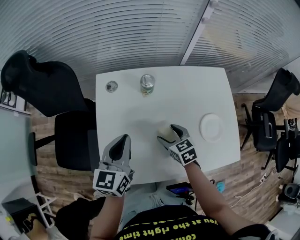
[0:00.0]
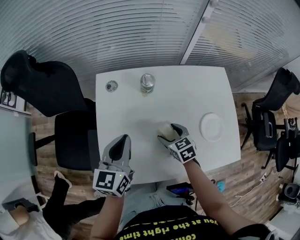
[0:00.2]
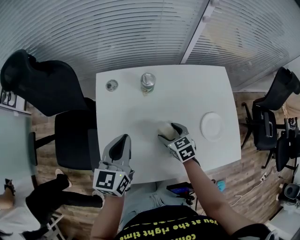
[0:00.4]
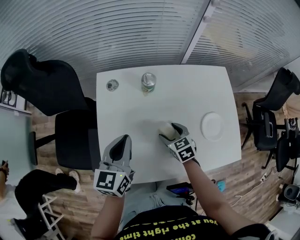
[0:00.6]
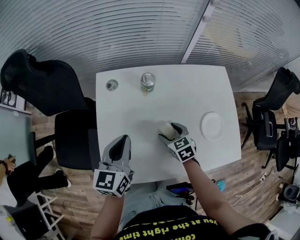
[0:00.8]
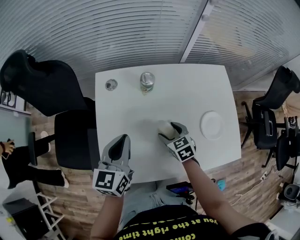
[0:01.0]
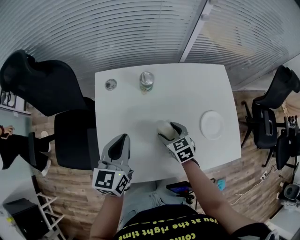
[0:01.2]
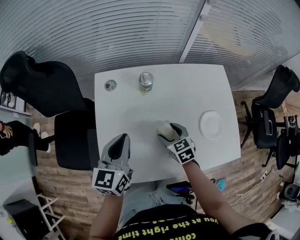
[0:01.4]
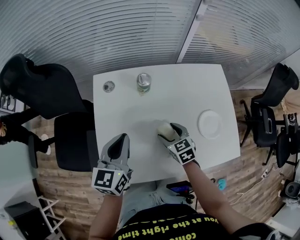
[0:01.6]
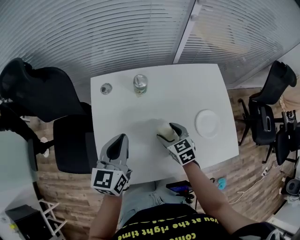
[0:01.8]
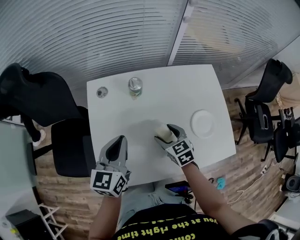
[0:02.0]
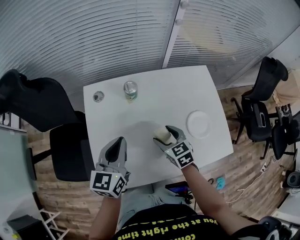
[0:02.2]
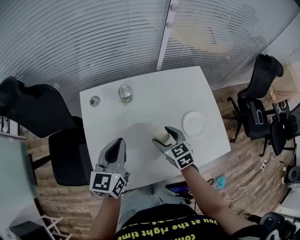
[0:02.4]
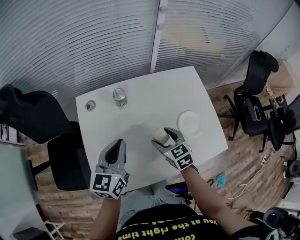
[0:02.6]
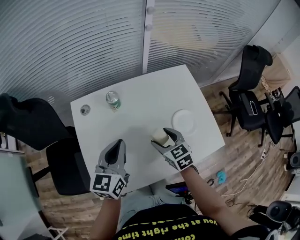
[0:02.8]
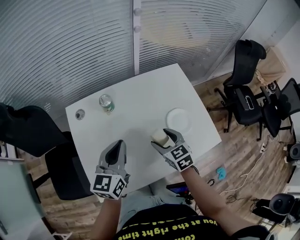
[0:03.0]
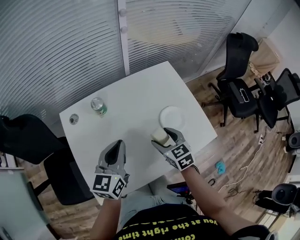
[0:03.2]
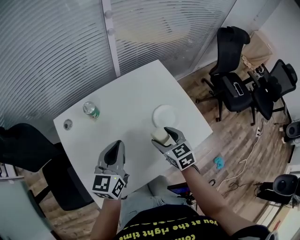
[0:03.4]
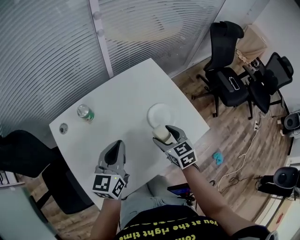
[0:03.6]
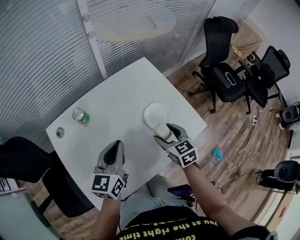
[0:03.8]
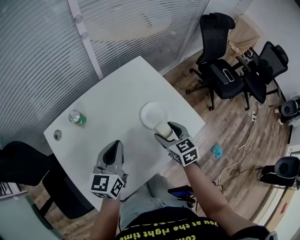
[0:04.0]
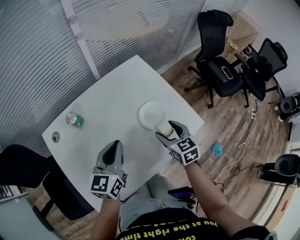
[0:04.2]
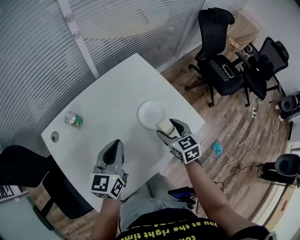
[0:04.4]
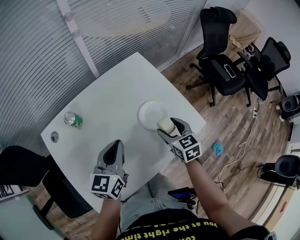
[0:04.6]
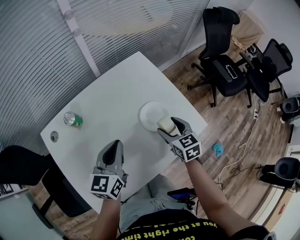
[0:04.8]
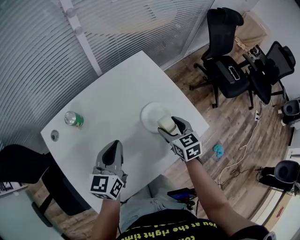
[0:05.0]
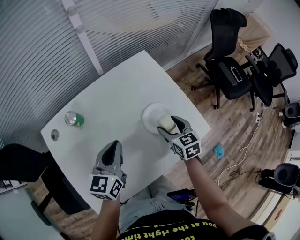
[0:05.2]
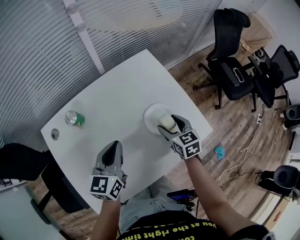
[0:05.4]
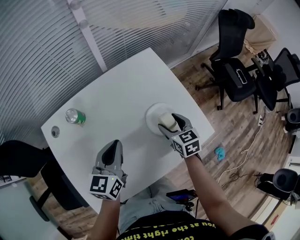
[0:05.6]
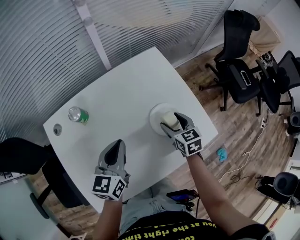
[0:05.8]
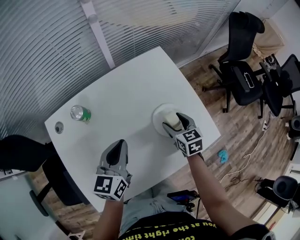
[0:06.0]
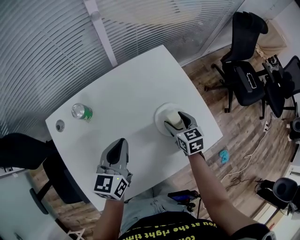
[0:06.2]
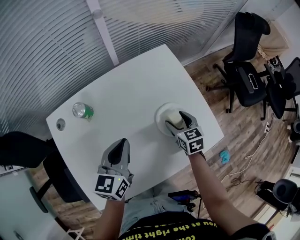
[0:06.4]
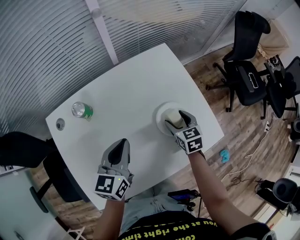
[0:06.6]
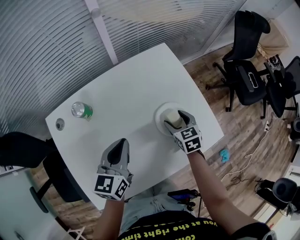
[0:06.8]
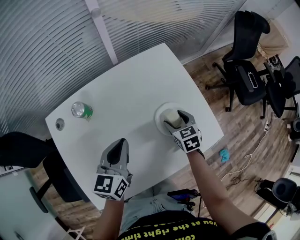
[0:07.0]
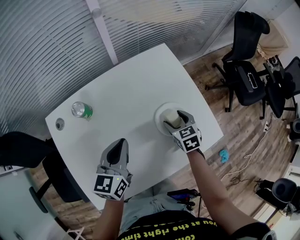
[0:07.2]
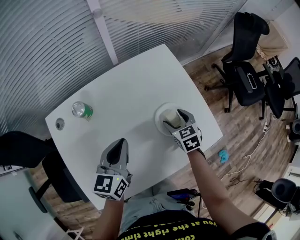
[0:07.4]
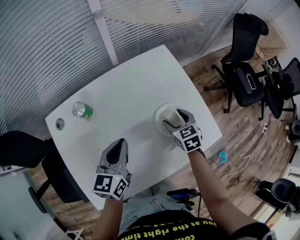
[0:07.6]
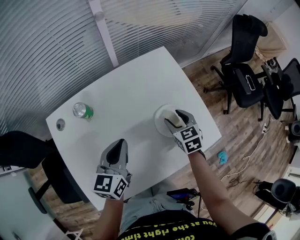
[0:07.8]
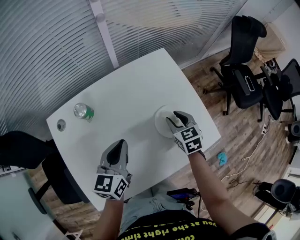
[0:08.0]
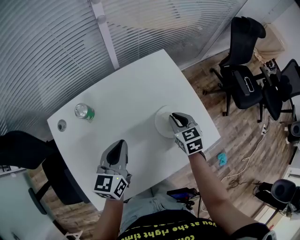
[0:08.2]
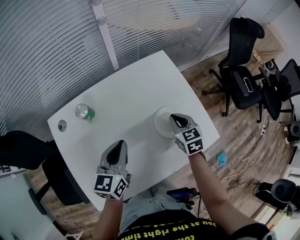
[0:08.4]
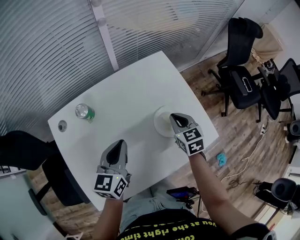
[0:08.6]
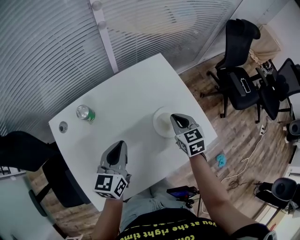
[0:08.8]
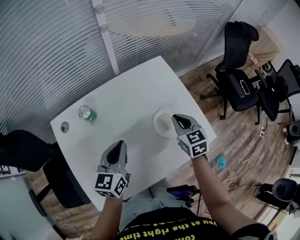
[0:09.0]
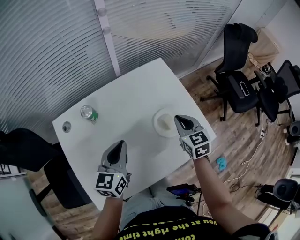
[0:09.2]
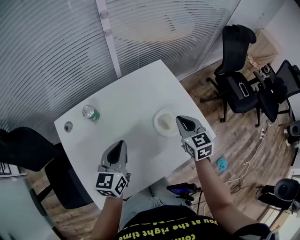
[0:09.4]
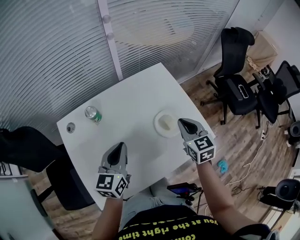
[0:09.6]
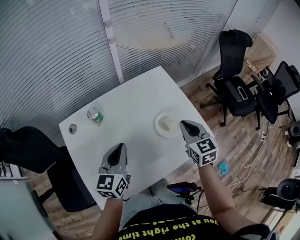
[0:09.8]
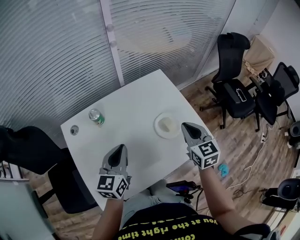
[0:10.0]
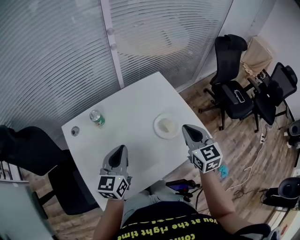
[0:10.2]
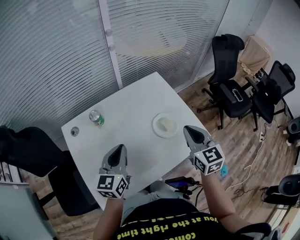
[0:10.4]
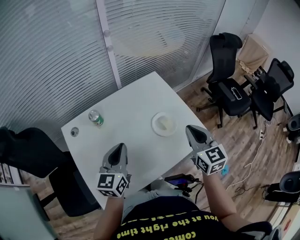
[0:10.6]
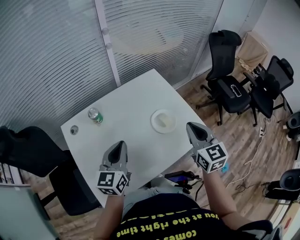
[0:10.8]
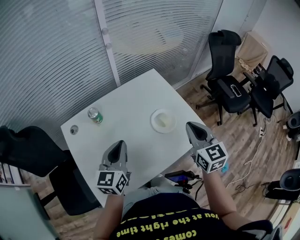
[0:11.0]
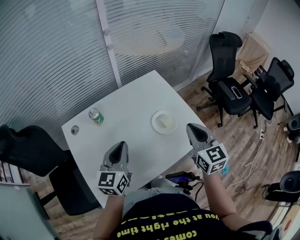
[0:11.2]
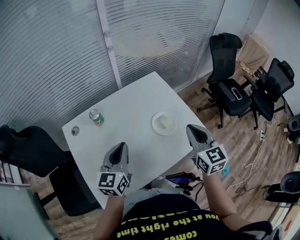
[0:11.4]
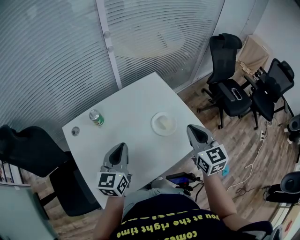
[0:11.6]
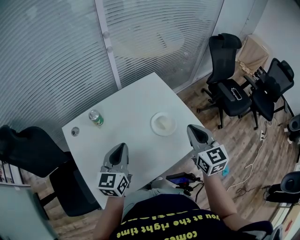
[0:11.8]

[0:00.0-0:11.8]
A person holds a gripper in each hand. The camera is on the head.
0:00.0 to 0:01.4: The grippers move only a little.
0:01.4 to 0:03.0: The left gripper heads to the right, covering approximately 10 cm, while the right gripper heads to the right and upward, covering about 15 cm.
0:03.0 to 0:04.4: Both grippers move to the right, approximately 15 cm. The right gripper rotates about 20 degrees.
0:04.4 to 0:06.0: The right gripper goes about 10 cm forward and downward, while the left gripper changes place by approximately 5 cm.
0:06.0 to 0:07.4: The grippers stay close to where they were, moving slightly.
0:07.4 to 0:08.8: The right gripper is displaced upward by about 10 cm, and closes.
0:08.8 to 0:10.4: The right gripper shifts about 20 cm upward and backward; the left gripper shifts about 10 cm upward and backward.
0:10.4 to 0:11.8: The grippers make only small movements.

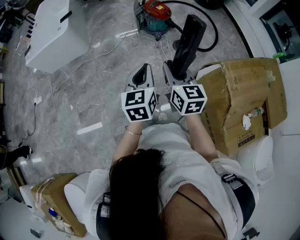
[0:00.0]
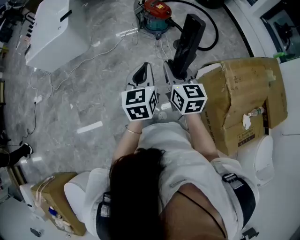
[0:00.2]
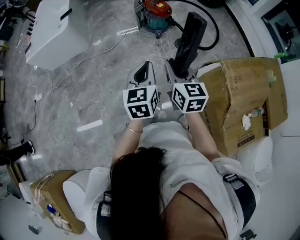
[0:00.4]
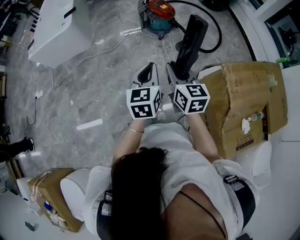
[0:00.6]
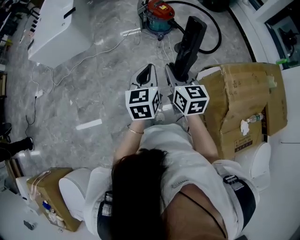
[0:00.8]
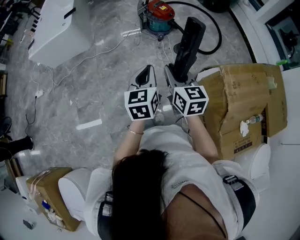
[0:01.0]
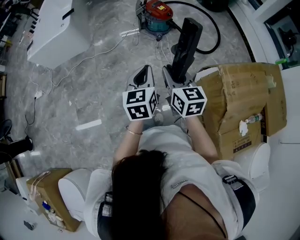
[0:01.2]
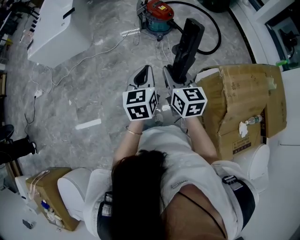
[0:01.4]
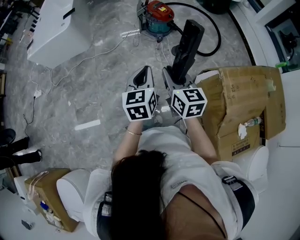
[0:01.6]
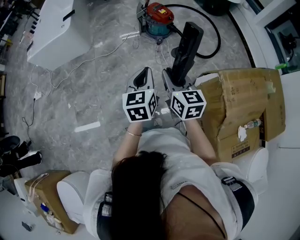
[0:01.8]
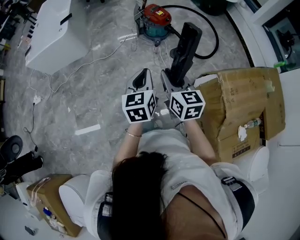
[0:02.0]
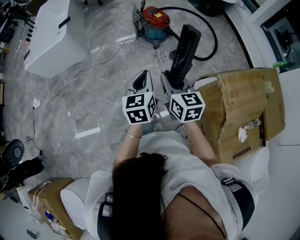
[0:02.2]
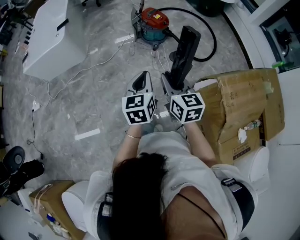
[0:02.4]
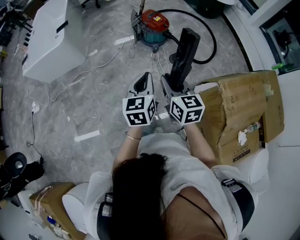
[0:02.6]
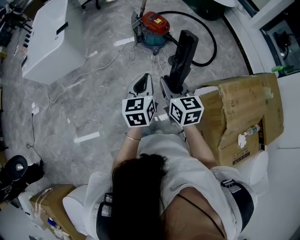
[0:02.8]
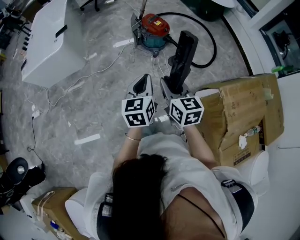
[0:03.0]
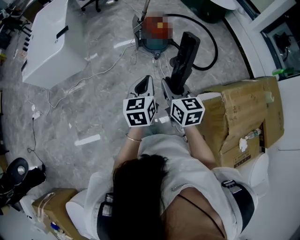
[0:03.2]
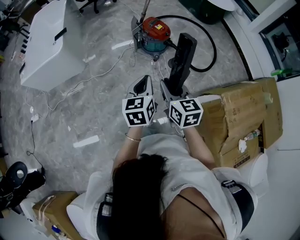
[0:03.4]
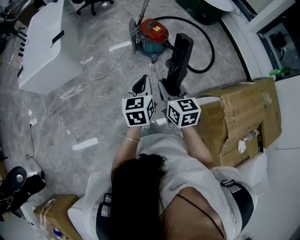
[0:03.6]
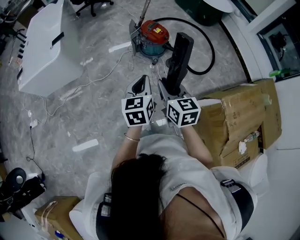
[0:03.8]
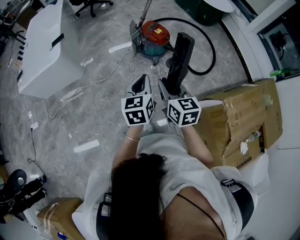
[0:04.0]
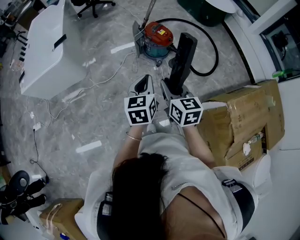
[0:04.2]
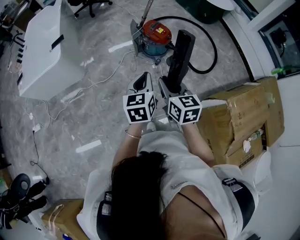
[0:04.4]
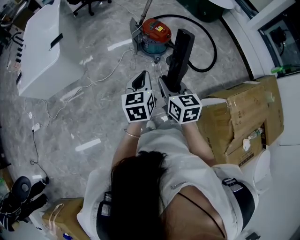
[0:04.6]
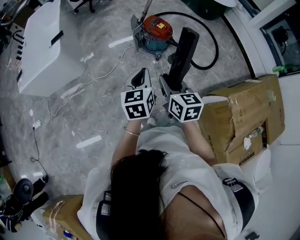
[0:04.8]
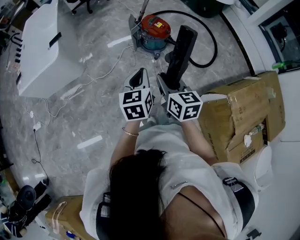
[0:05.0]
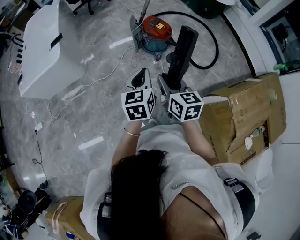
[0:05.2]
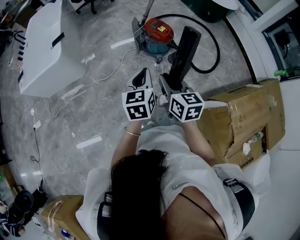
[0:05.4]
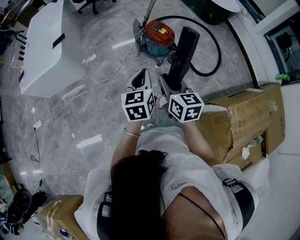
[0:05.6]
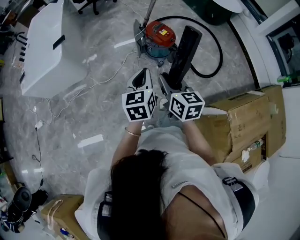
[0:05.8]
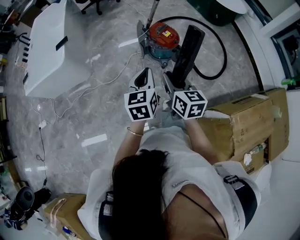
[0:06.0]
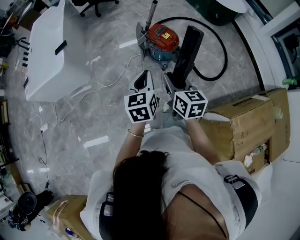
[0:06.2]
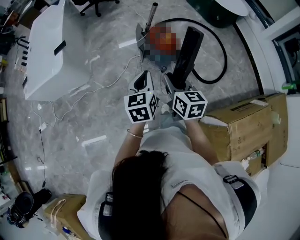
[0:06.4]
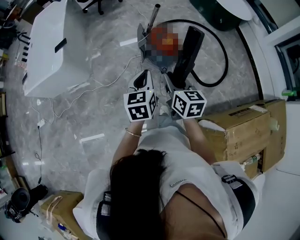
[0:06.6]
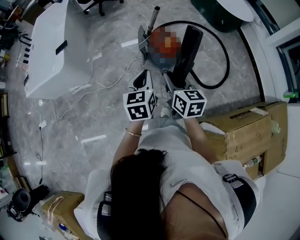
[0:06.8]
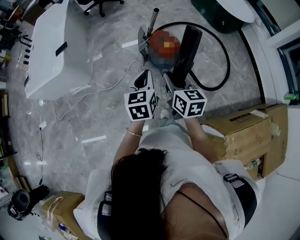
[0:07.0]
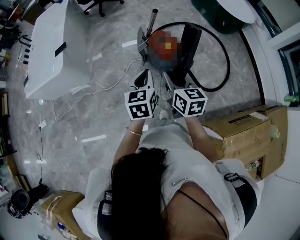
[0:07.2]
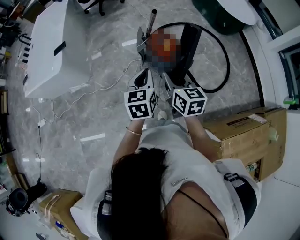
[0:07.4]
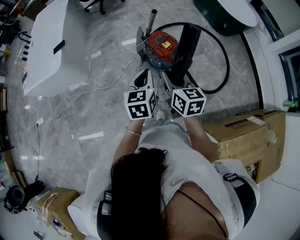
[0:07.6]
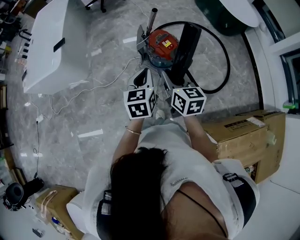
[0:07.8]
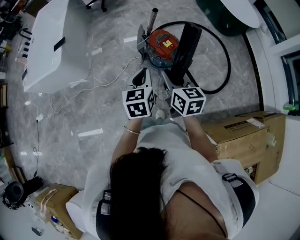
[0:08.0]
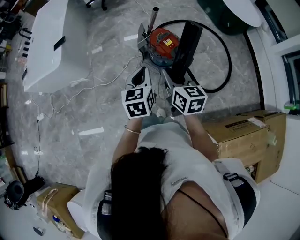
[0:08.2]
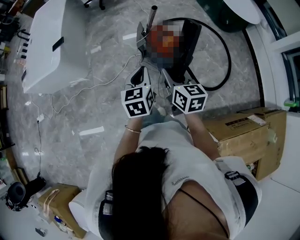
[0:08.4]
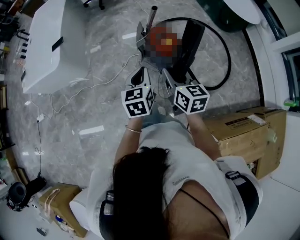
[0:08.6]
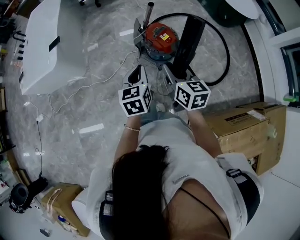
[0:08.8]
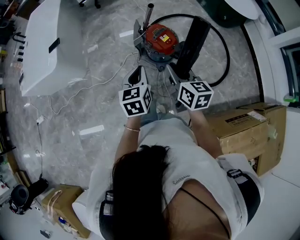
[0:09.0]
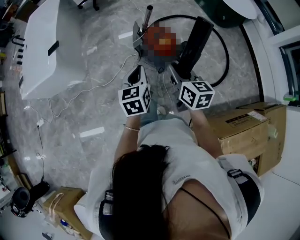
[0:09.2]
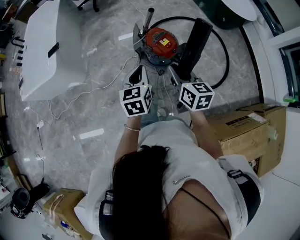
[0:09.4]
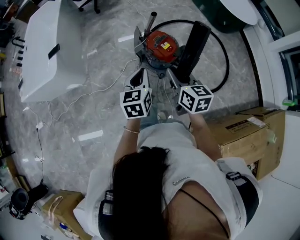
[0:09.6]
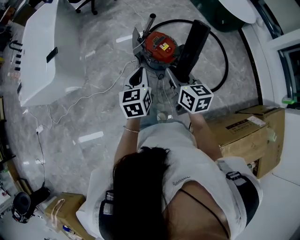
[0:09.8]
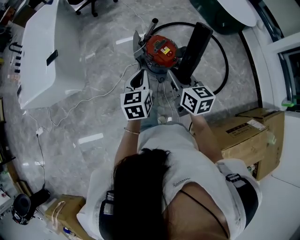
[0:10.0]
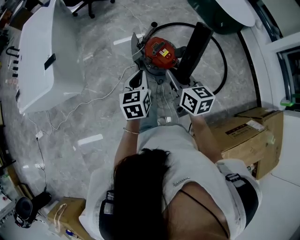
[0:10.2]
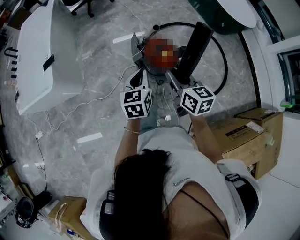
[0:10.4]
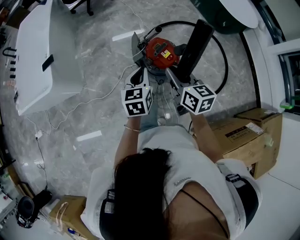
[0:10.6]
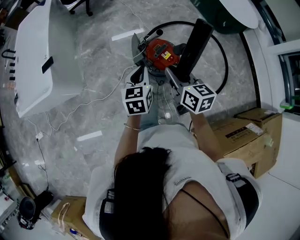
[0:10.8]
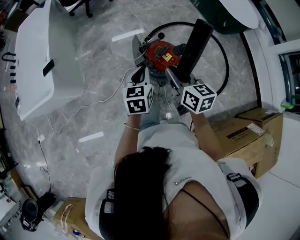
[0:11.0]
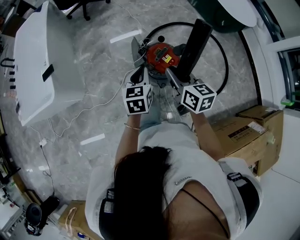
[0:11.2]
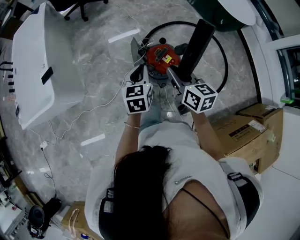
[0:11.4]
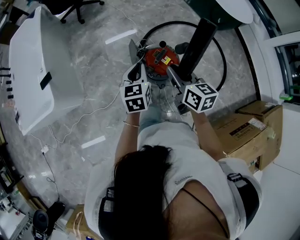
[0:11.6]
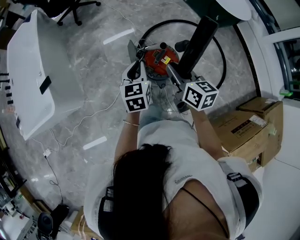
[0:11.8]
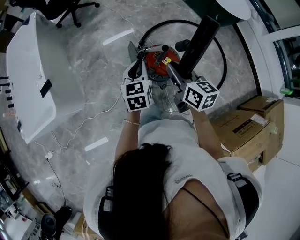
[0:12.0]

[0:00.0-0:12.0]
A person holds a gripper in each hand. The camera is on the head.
0:00.0 to 0:01.6: The grippers stay close to where they were, moving slightly.
0:01.6 to 0:03.0: The two grippers go approximately 10 cm forward.
0:03.0 to 0:04.4: The grippers both shift forward and to the left by roughly 15 cm.
0:04.4 to 0:06.0: The grippers both shift forward by approximately 10 cm.
0:06.0 to 0:07.6: The grippers both shift forward and to the right by approximately 15 cm.
0:07.6 to 0:09.0: There are only small adjustments of the grippers.
0:09.0 to 0:10.4: The grippers both shift forward by roughly 15 cm.
0:10.4 to 0:12.0: The two grippers go about 15 cm forward.
